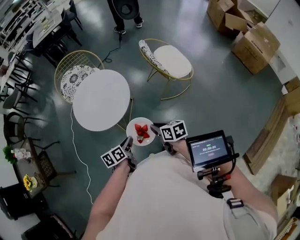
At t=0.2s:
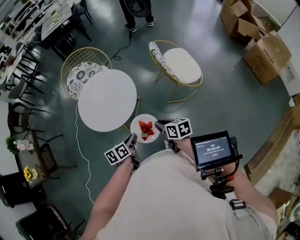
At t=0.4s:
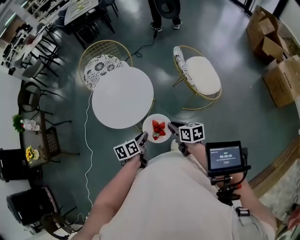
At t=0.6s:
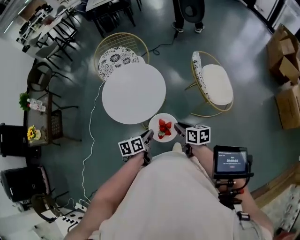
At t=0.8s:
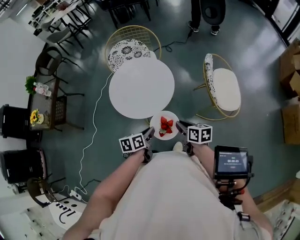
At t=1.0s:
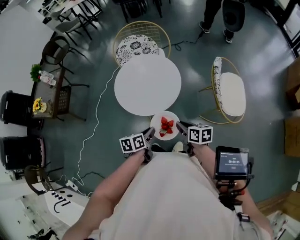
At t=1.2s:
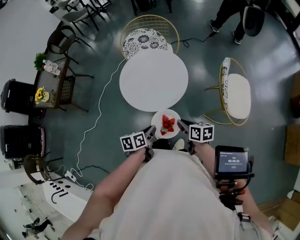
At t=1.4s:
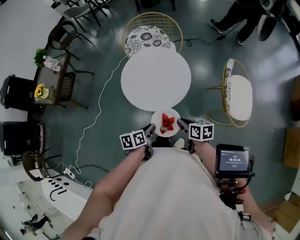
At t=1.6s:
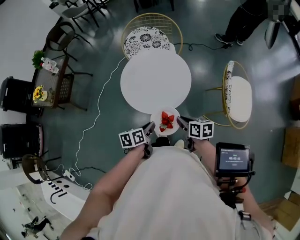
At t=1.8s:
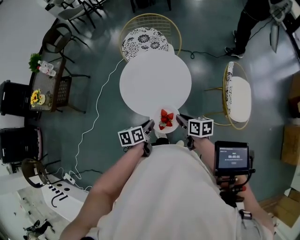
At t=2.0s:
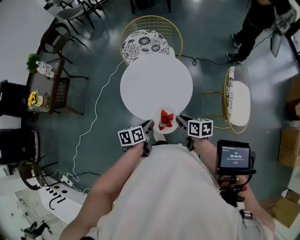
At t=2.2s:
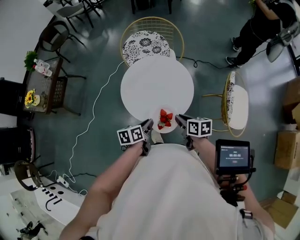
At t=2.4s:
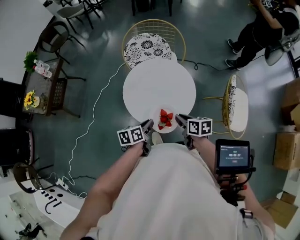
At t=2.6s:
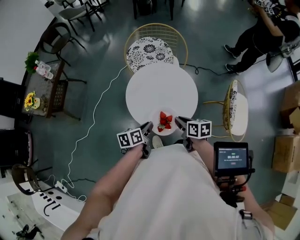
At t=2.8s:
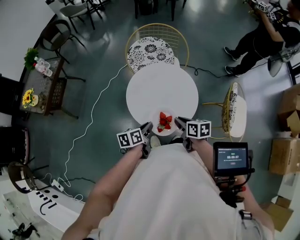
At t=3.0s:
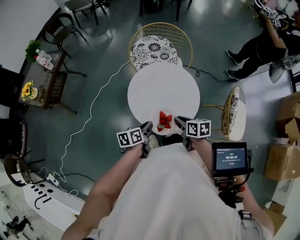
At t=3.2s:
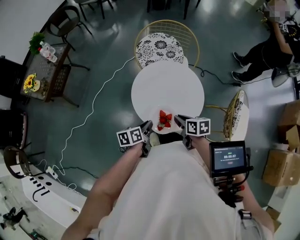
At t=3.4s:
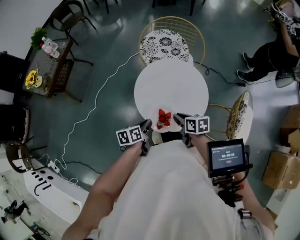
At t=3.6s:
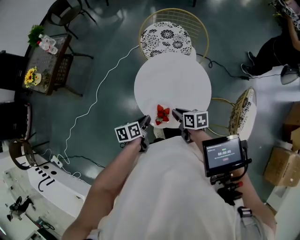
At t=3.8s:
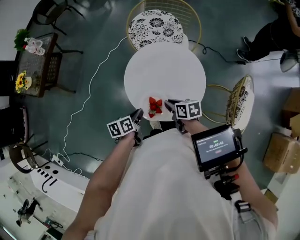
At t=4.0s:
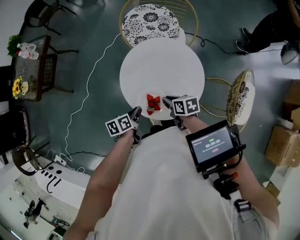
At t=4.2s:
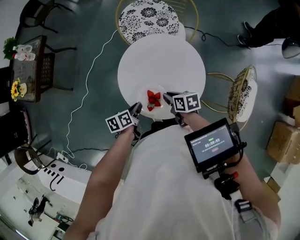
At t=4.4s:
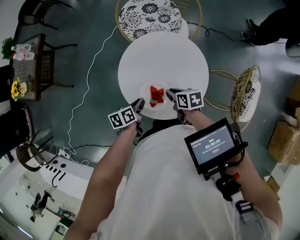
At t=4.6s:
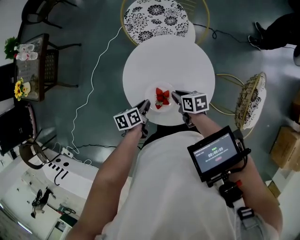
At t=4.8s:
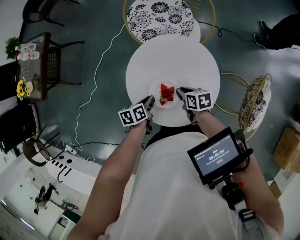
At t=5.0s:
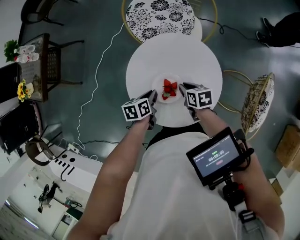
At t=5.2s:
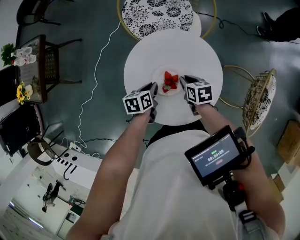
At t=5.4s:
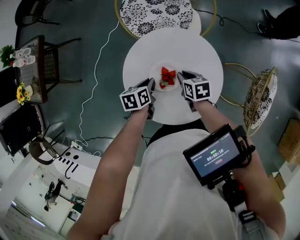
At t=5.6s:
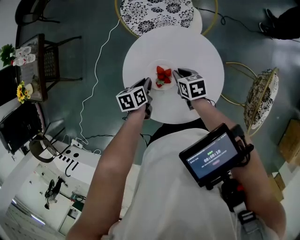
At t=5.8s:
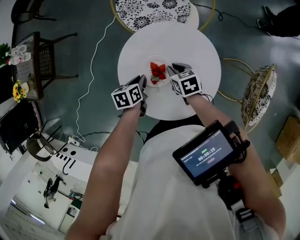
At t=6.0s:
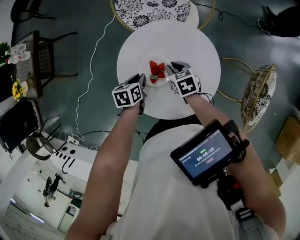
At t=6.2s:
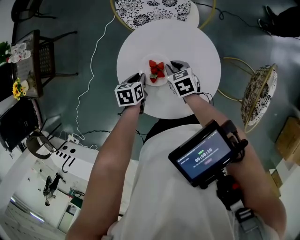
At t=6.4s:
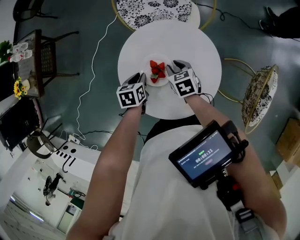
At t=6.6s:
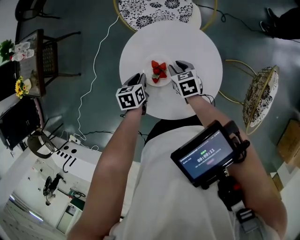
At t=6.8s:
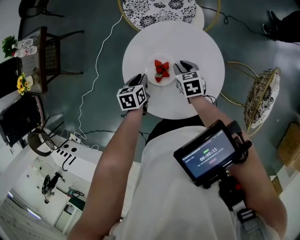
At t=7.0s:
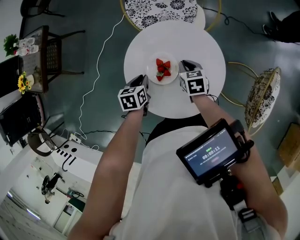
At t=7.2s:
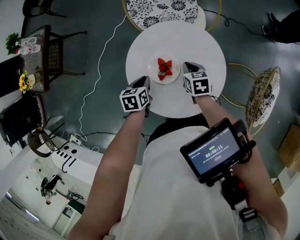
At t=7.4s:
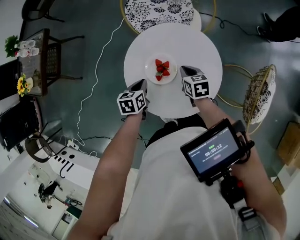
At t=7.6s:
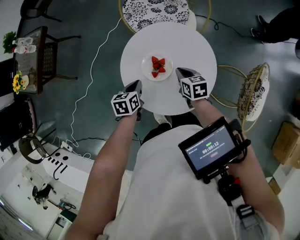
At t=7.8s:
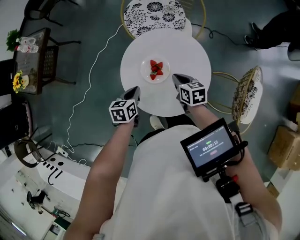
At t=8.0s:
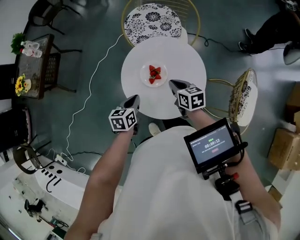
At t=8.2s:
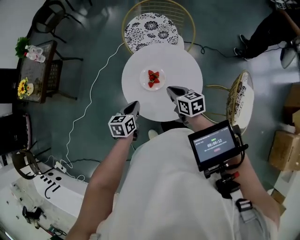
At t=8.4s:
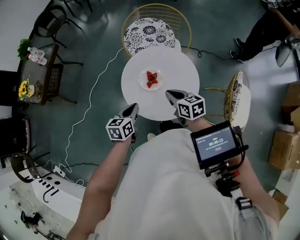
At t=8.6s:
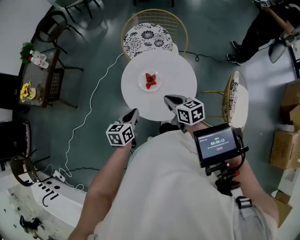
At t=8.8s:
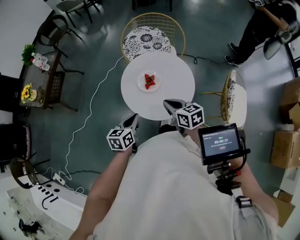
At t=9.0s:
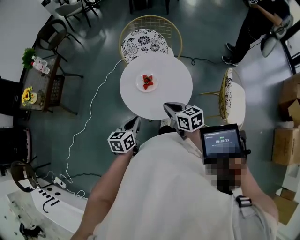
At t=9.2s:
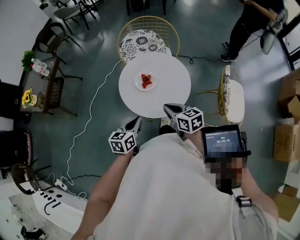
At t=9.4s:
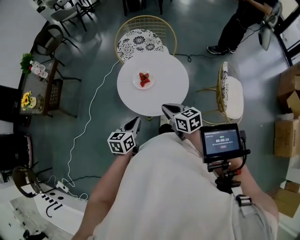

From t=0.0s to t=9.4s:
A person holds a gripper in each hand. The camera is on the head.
From t=0.0s to t=1.6s: The right gripper ends up some 15 cm from where it was, and swivels about 30 degrees. Meanwhile the left gripper changes place by roughly 10 cm, and swivels roughly 30 degrees.
From t=1.6s to t=3.2s: The grippers both shift forward and to the left by some 20 cm.
From t=3.2s to t=4.8s: The right gripper travels downward and forward by approximately 20 cm; the left gripper goes approximately 15 cm forward and downward.
From t=4.8s to t=6.2s: Both grippers travel together forward, about 5 cm. The right gripper rotates some 20 degrees. The left gripper rotates approximately 20 degrees.
From t=6.2s to t=7.8s: Both grippers travel together upward and backward, some 10 cm.
From t=7.8s to t=9.4s: The two grippers go some 25 cm backward and upward. The left gripper turns by about 20 degrees.

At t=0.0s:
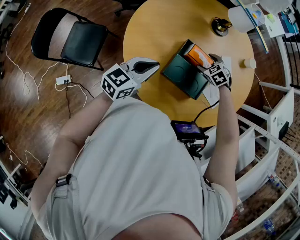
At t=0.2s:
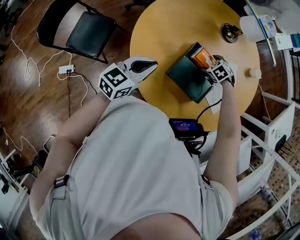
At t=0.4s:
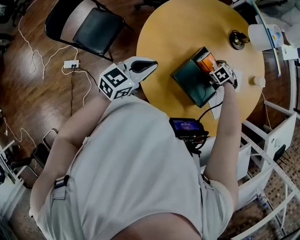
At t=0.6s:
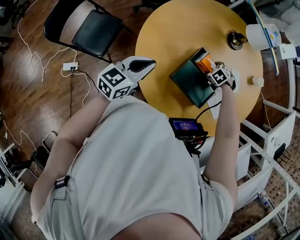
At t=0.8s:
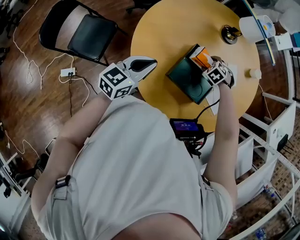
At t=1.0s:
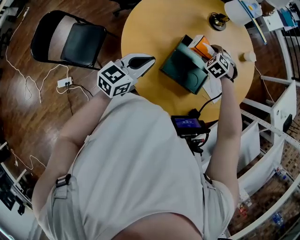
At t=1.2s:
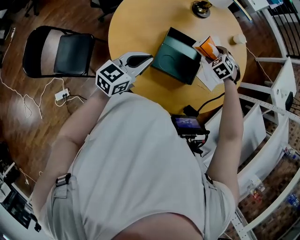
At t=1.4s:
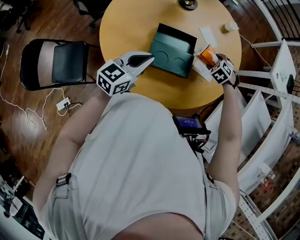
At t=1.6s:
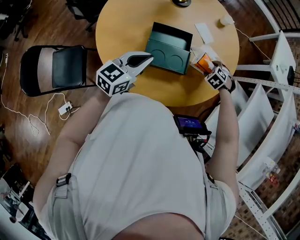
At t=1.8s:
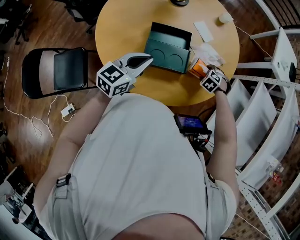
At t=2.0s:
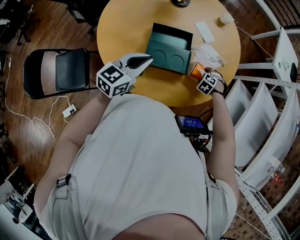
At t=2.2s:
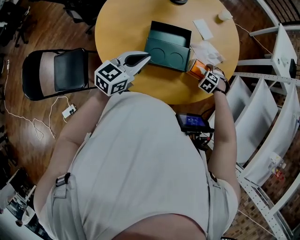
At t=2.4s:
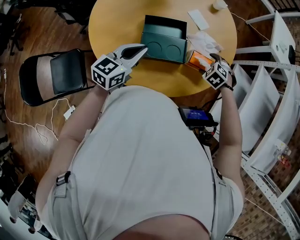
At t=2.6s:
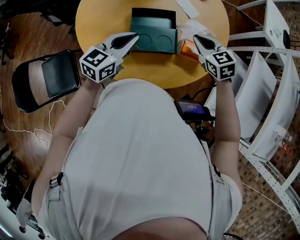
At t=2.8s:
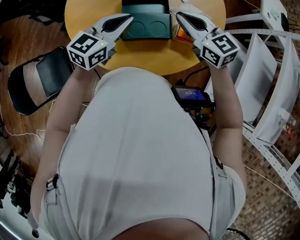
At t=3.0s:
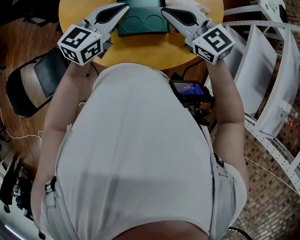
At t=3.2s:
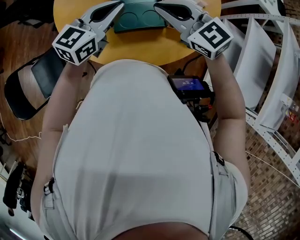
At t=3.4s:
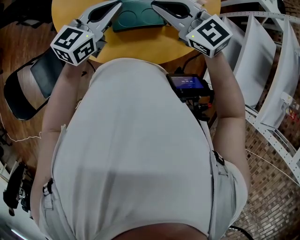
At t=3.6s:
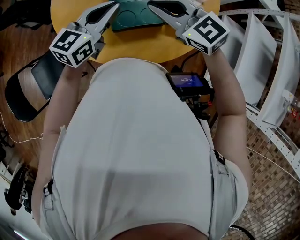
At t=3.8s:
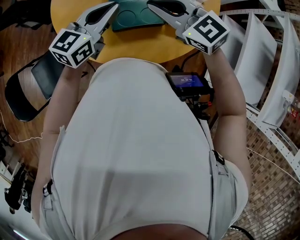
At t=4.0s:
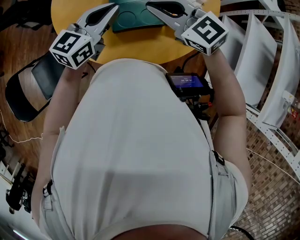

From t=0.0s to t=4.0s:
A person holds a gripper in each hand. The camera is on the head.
From t=0.0s to t=1.4s: The left gripper changes place by some 10 cm, while the right gripper moves some 10 cm downward and comes back, and swivels some 20 degrees.
From t=1.4s to t=2.6s: The right gripper moves upward, about 15 cm, turns by some 50 degrees, and closes.
From t=2.6s to t=4.0s: The right gripper is displaced to the left and upward by approximately 15 cm, and swivels roughly 30 degrees.

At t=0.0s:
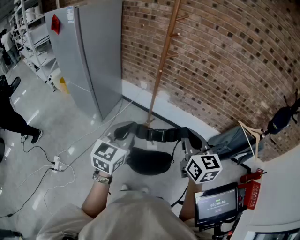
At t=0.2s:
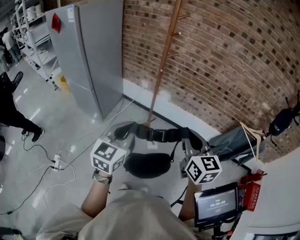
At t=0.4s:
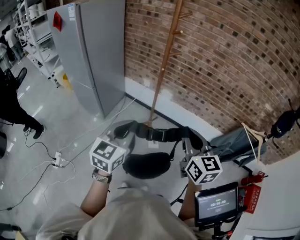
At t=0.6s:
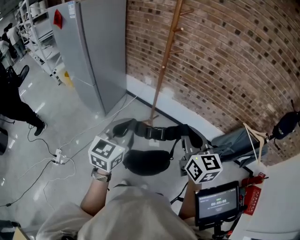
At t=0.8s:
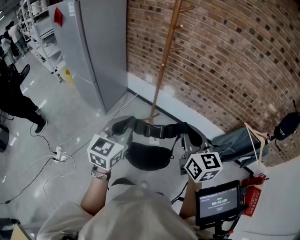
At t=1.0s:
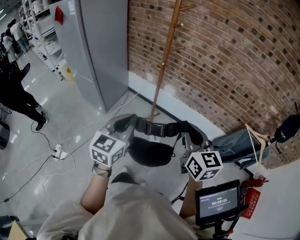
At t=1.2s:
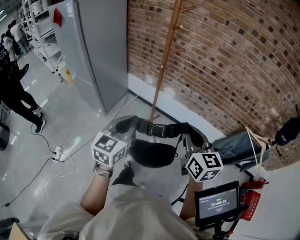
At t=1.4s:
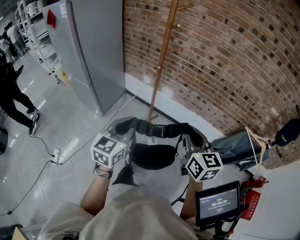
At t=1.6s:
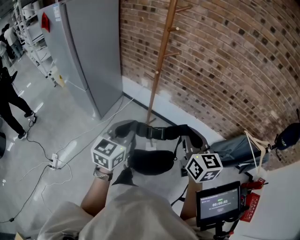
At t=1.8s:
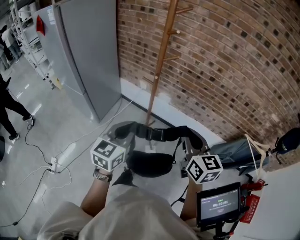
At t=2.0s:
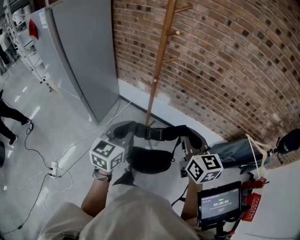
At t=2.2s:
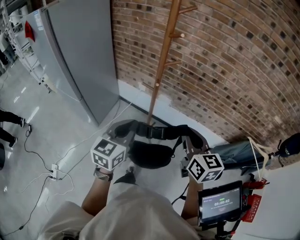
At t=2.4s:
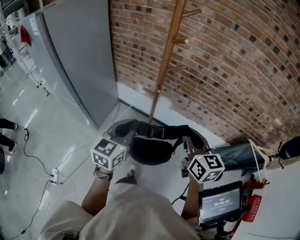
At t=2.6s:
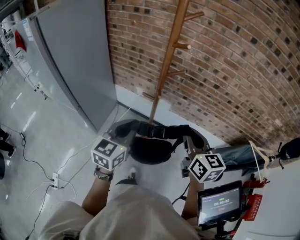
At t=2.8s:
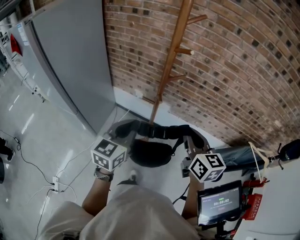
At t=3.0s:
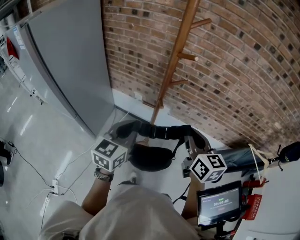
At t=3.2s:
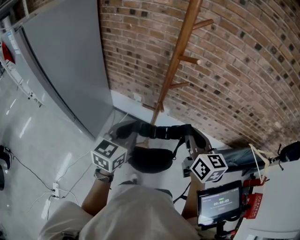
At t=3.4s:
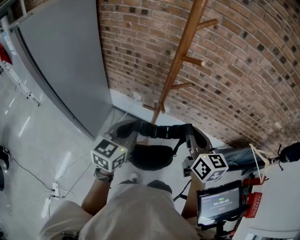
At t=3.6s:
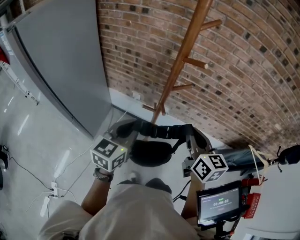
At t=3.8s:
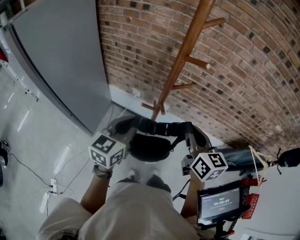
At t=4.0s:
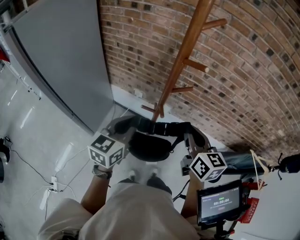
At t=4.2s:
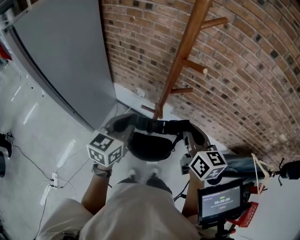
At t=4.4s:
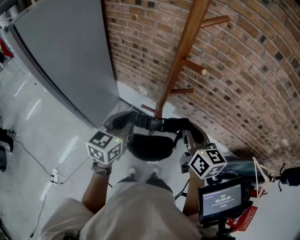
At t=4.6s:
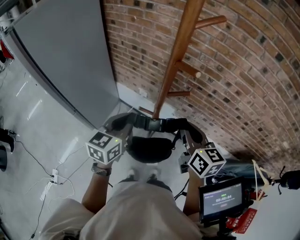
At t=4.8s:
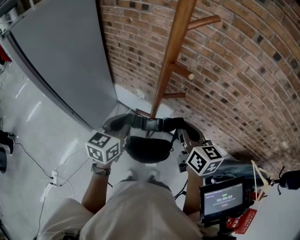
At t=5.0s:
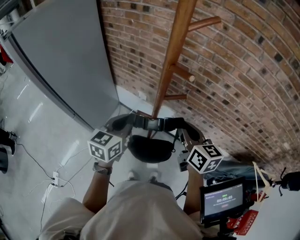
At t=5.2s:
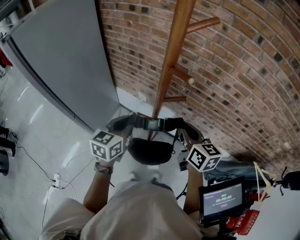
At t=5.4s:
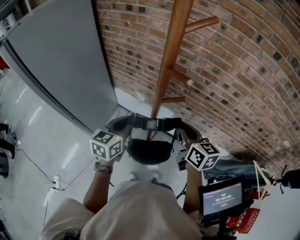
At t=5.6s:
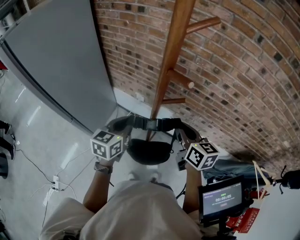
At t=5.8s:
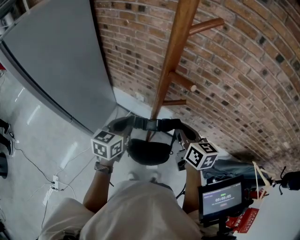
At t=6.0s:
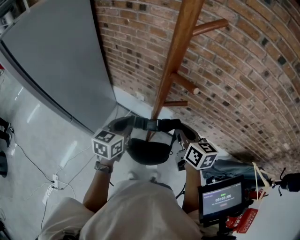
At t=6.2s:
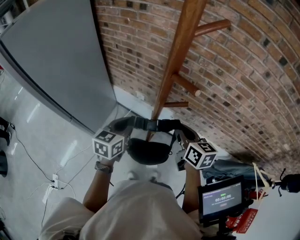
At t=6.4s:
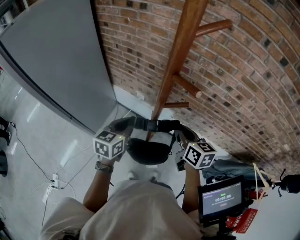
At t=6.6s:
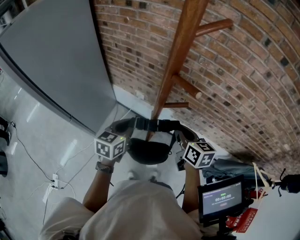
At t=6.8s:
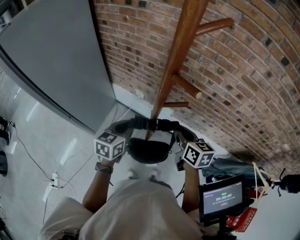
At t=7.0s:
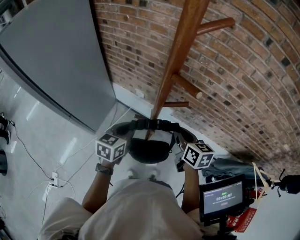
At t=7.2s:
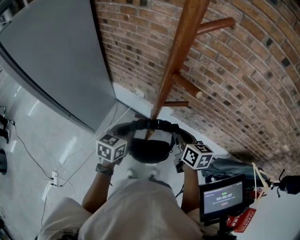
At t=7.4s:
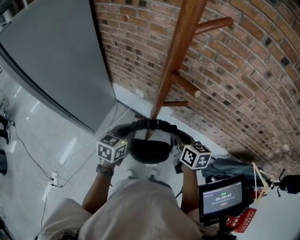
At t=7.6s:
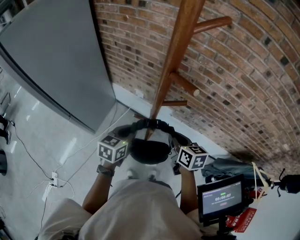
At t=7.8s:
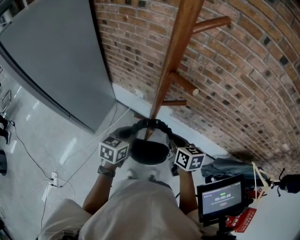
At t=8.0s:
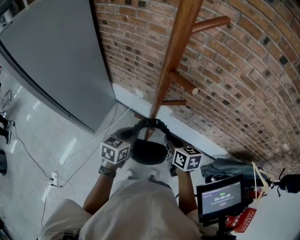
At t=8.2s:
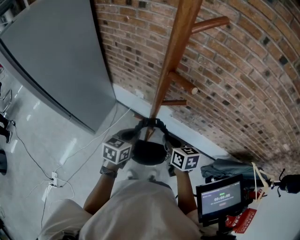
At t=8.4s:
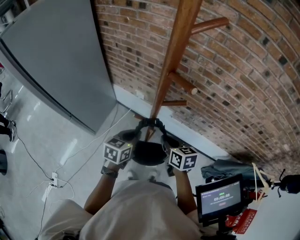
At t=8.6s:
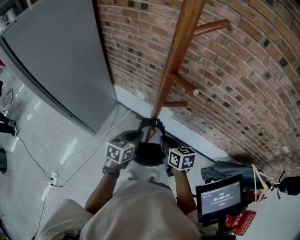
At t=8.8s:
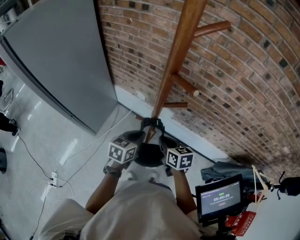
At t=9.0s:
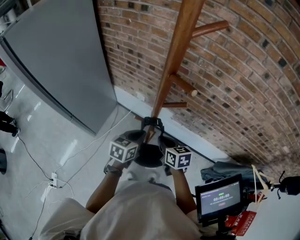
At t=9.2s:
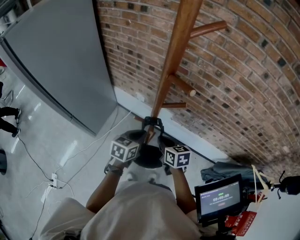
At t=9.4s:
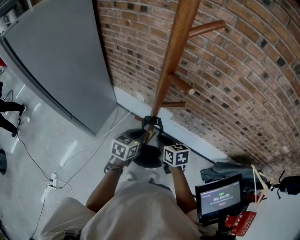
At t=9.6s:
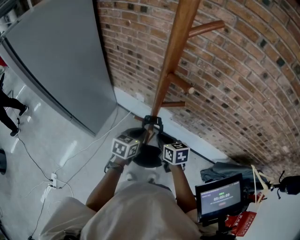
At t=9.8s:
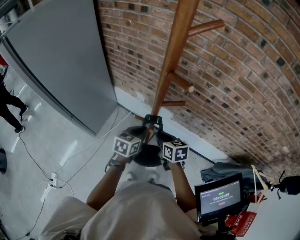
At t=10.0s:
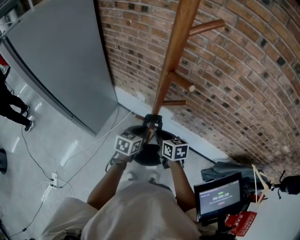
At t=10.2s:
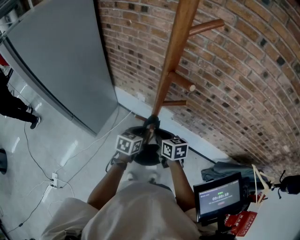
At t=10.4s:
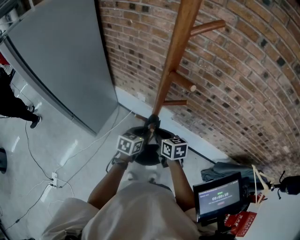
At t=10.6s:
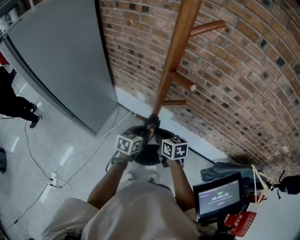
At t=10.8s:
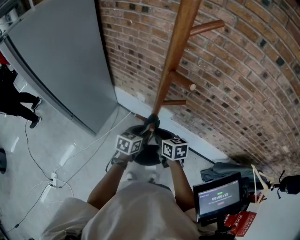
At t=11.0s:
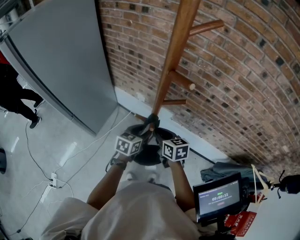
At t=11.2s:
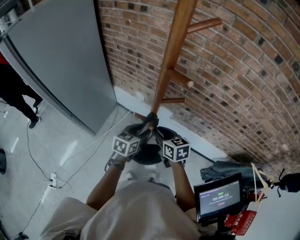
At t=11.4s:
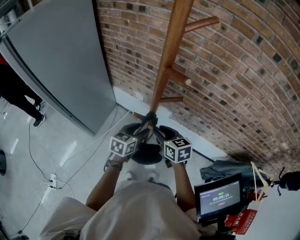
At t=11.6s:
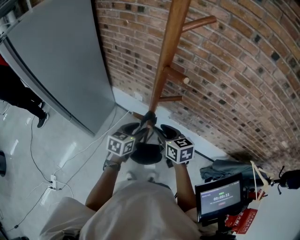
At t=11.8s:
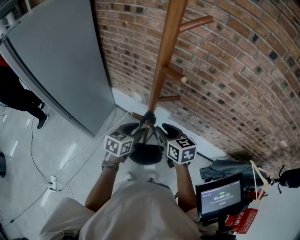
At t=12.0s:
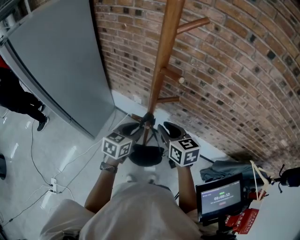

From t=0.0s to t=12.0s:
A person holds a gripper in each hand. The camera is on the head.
From t=0.0s to t=1.6s: Both grippers move forward, about 10 cm.
From t=1.6s to t=3.0s: Both grippers travel together forward, approximately 20 cm.
From t=3.0s to t=4.4s: Both grippers travel together forward, approximately 10 cm.
From t=4.4s to t=6.0s: The grippers both shift downward and forward by some 10 cm.
From t=6.0s to t=7.6s: Both grippers move downward, roughly 5 cm.
From t=7.6s to t=9.0s: The right gripper moves about 5 cm, while the left gripper moves some 5 cm.
From t=9.0s to t=10.4s: The grippers move only a little.
From t=10.4s to t=12.0s: The grippers both shift upward by some 10 cm.
